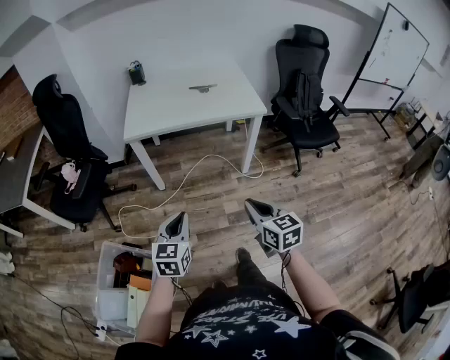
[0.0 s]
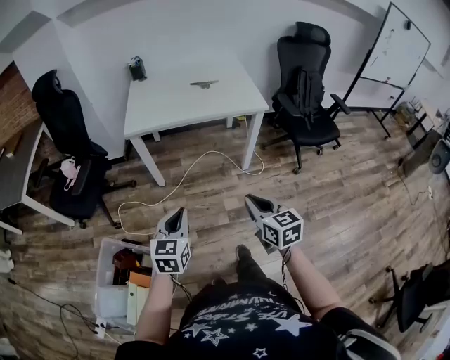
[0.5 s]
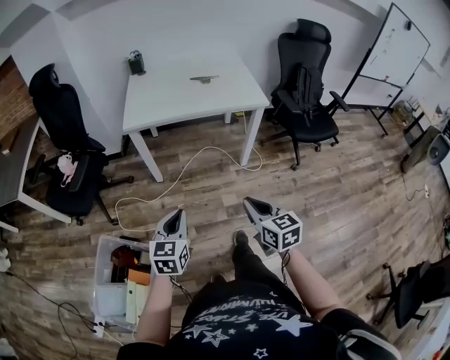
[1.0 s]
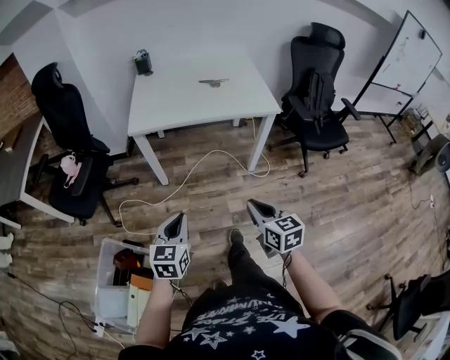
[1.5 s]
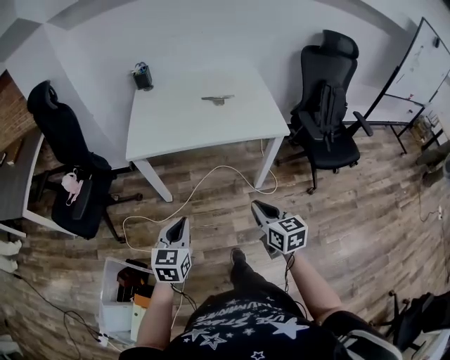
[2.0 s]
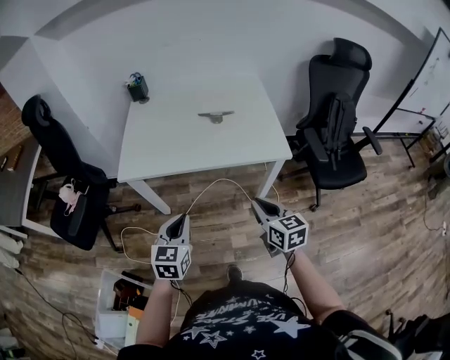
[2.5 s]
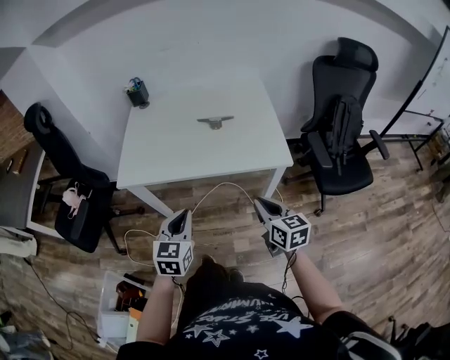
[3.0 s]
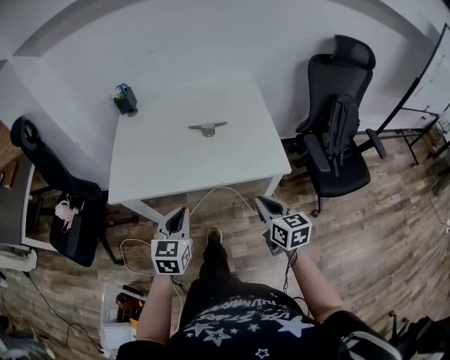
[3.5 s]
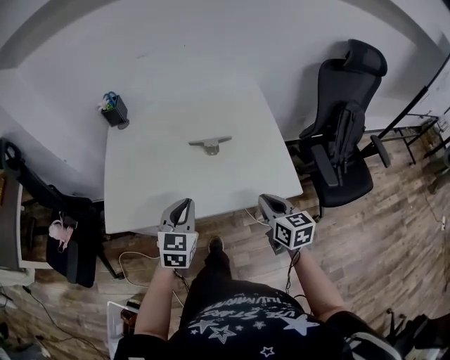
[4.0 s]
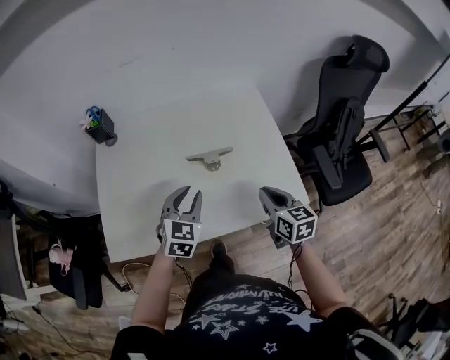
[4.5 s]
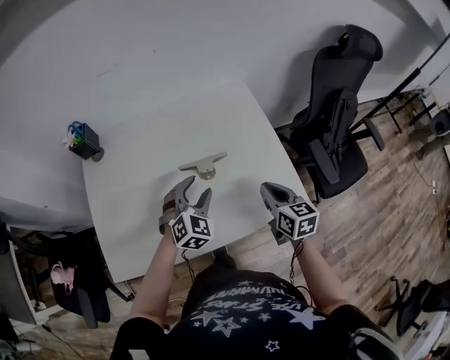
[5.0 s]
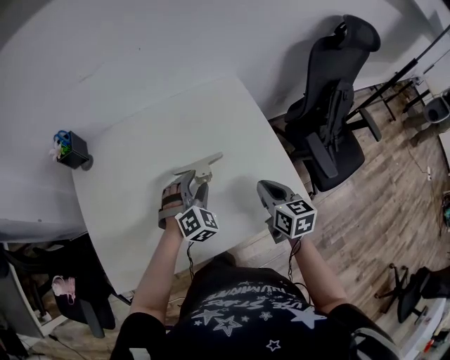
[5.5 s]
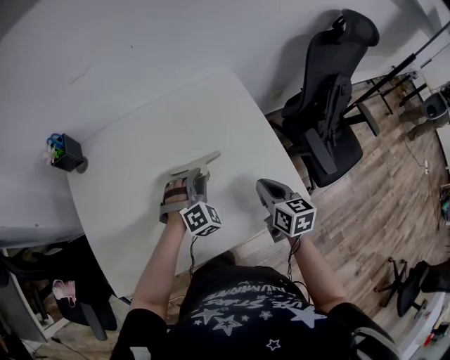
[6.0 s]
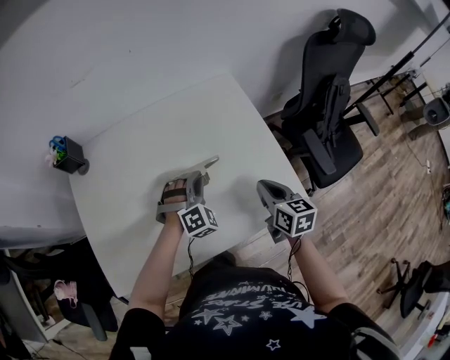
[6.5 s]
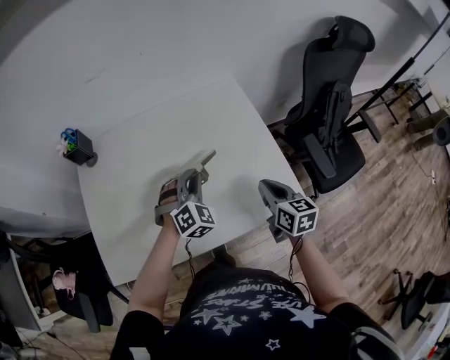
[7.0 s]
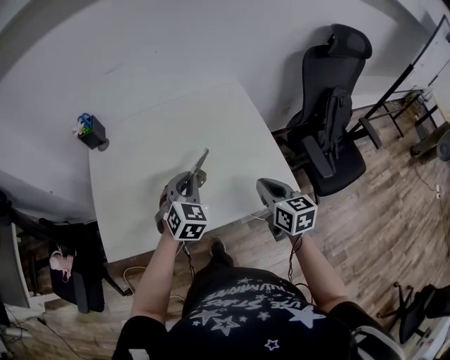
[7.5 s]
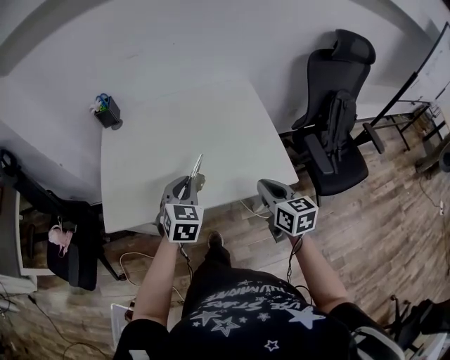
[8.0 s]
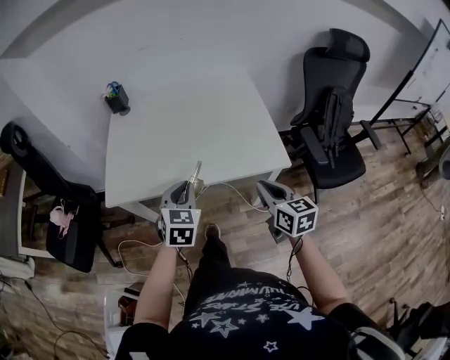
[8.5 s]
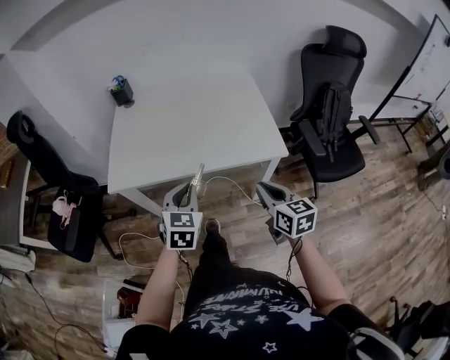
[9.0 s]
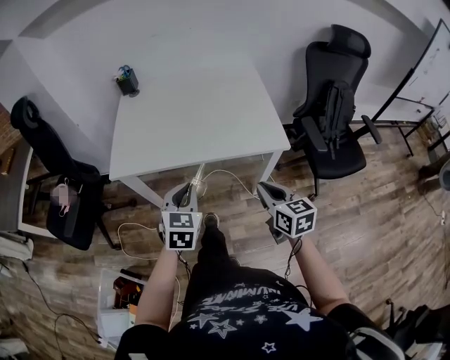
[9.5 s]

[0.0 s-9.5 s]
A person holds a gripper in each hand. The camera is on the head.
0.0 to 2.0 s: The grippers both shift forward by about 20 cm.
2.0 to 4.0 s: The two grippers travel together, forward, some 50 cm.
4.0 to 5.5 s: The grippers both shift forward by about 25 cm. The left gripper rotates around the line of its fingers by roughly 50 degrees, clockwise from behind, and opens up.
5.5 to 7.5 s: Both grippers move backward and upward, roughly 15 cm. The left gripper rotates roughly 30 degrees, and closes its fingers.
7.5 to 9.5 s: The two grippers go about 35 cm backward. The left gripper turns by about 20 degrees.

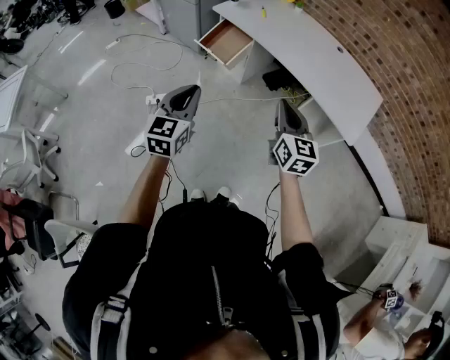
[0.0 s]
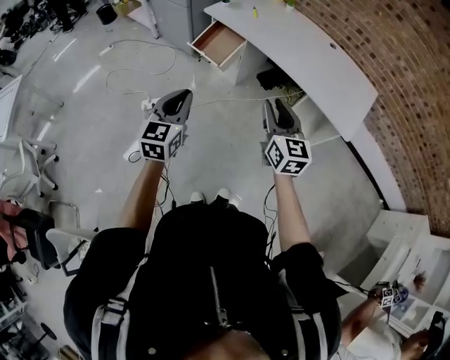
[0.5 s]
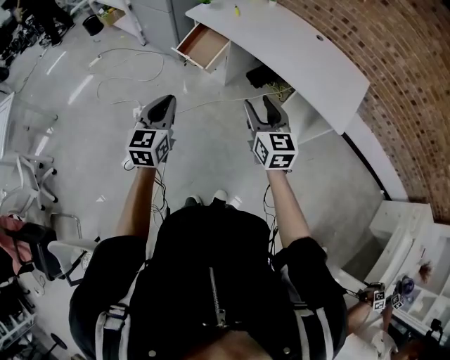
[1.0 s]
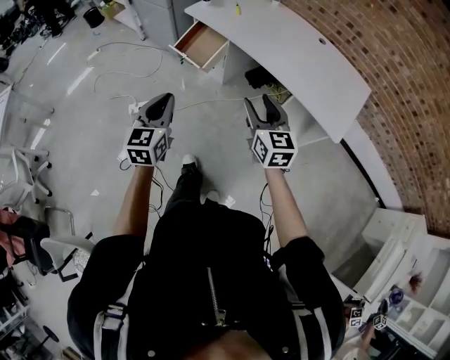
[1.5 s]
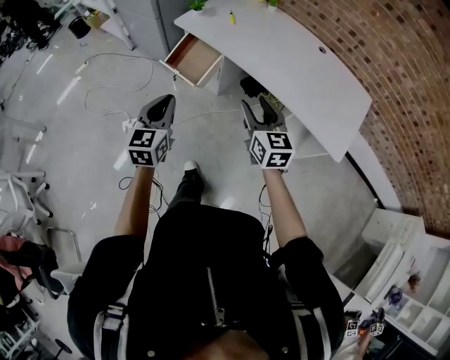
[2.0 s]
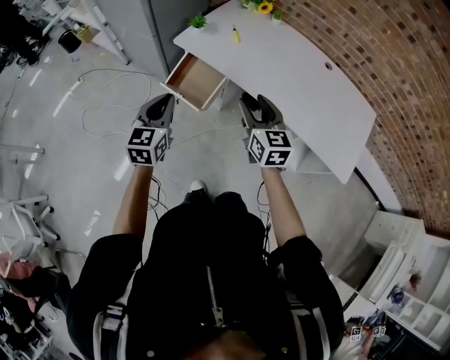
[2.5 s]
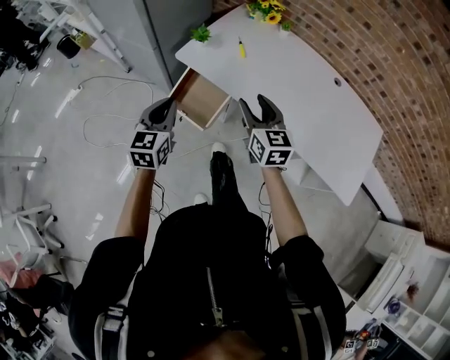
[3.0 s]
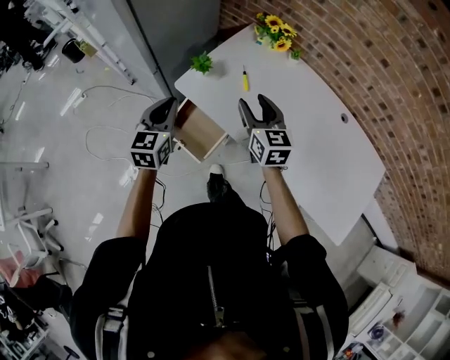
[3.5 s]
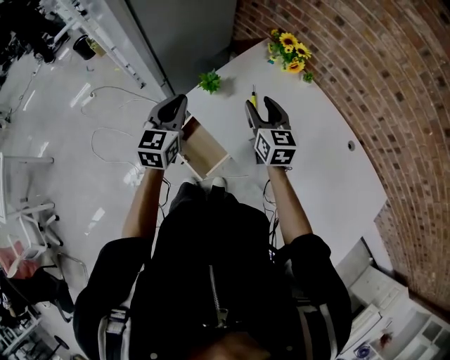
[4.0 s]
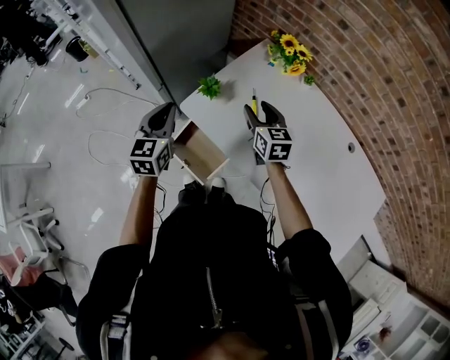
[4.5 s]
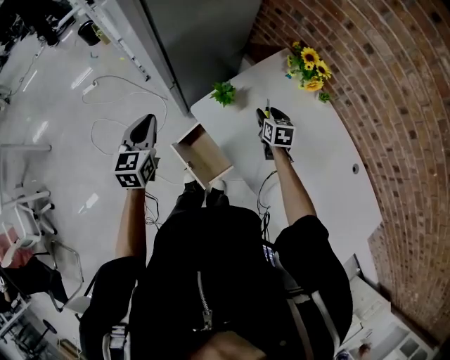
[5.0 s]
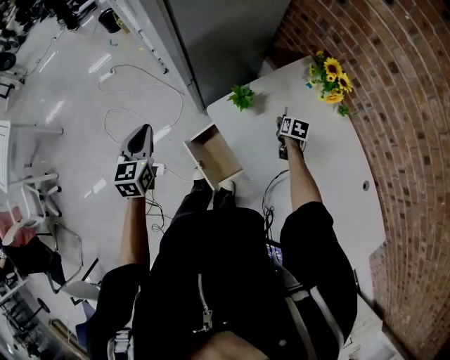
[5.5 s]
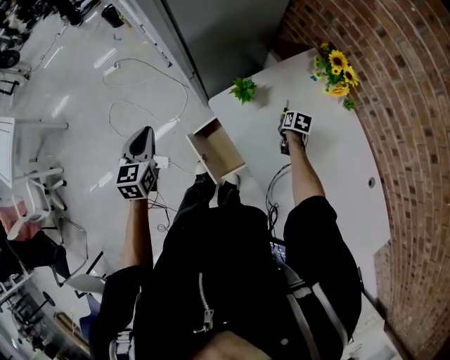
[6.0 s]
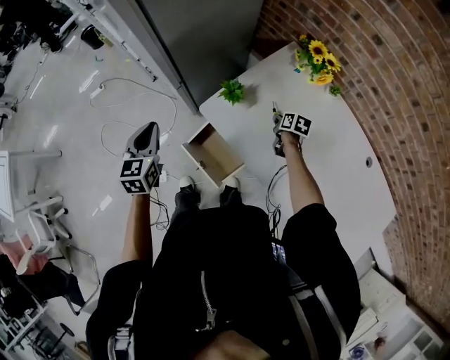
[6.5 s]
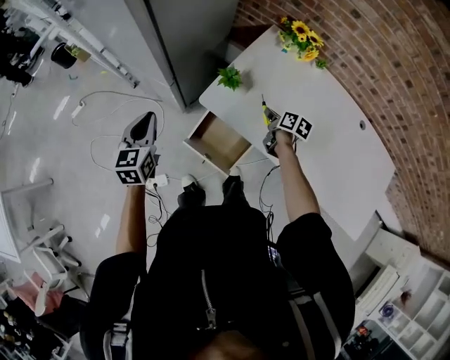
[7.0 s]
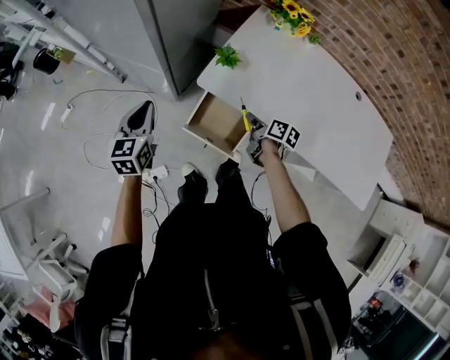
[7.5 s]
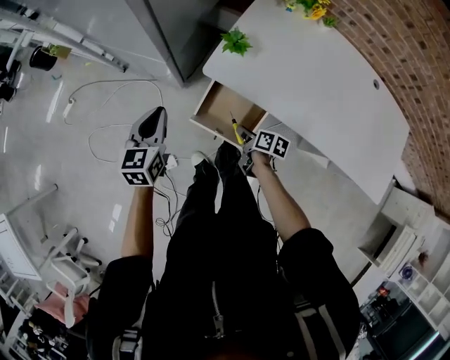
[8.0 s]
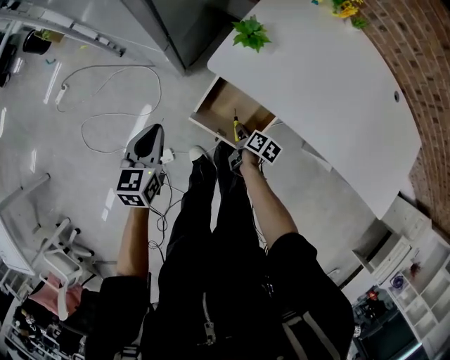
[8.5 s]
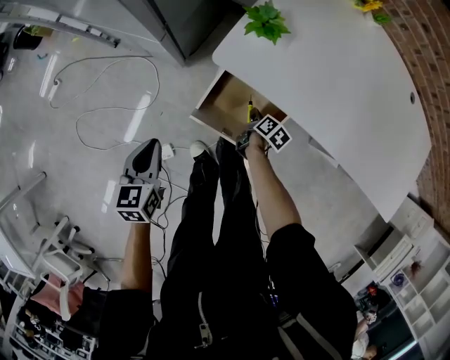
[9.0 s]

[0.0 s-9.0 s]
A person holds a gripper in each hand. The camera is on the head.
0.0 to 2.0 s: Both grippers travel together forward, some 20 cm. The right gripper opens its fingers.
2.0 to 4.5 s: The pair of grippers is taken forward, roughly 60 cm.
4.5 to 7.0 s: The left gripper is displaced to the left by about 15 cm, while the right gripper heads downward, covering some 15 cm, rotates around the line of its fingers by some 50 degrees, clockwise from behind, and closes its fingers.
7.0 to 9.0 s: The grippers both shift downward by roughly 25 cm. The left gripper turns by roughly 20 degrees. Meanwhile the right gripper swivels some 30 degrees.

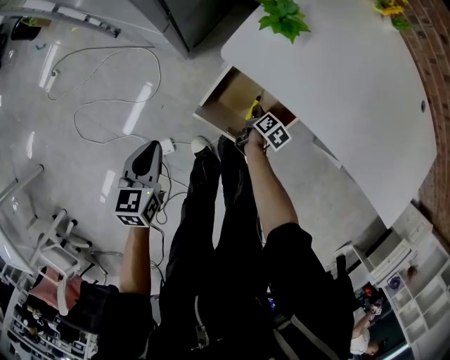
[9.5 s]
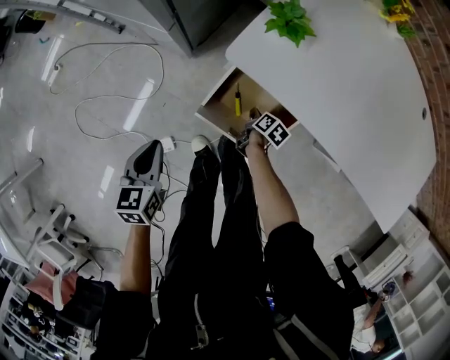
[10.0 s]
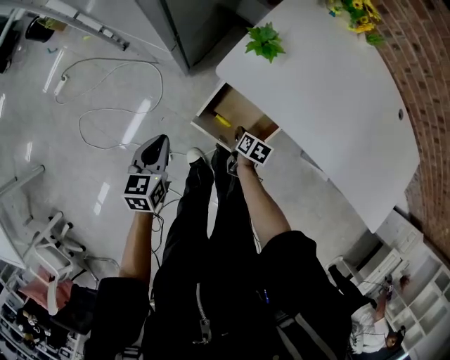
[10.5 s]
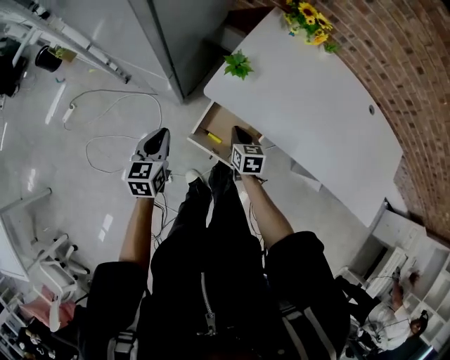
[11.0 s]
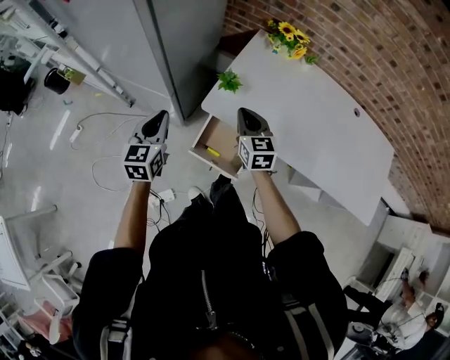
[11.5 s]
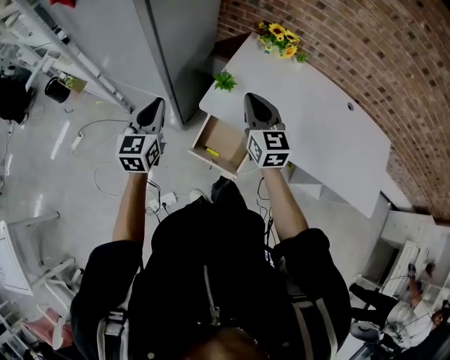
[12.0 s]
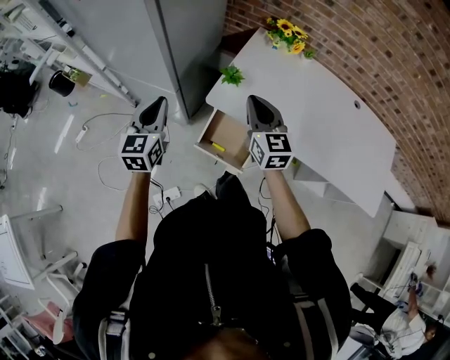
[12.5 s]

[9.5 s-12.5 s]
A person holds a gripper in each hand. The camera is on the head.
9.5 to 11.0 s: The right gripper heads upward, covering approximately 25 cm, and twists some 50 degrees counterclockwise, seen from behind. The left gripper is displaced upward by about 15 cm.
11.0 to 12.5 s: The right gripper travels upward by roughly 30 cm, and tips its fingers upward by about 30 degrees. The left gripper is displaced upward by about 20 cm, and swivels roughly 20 degrees.

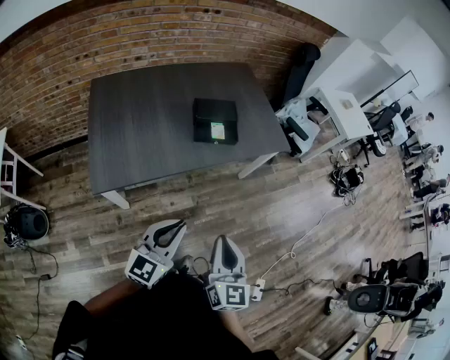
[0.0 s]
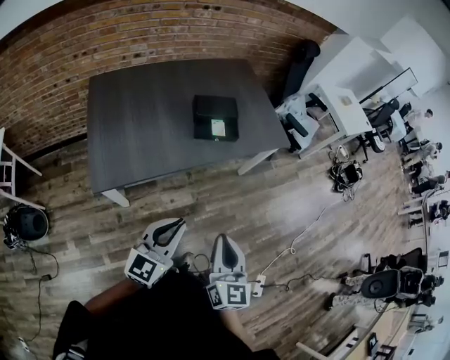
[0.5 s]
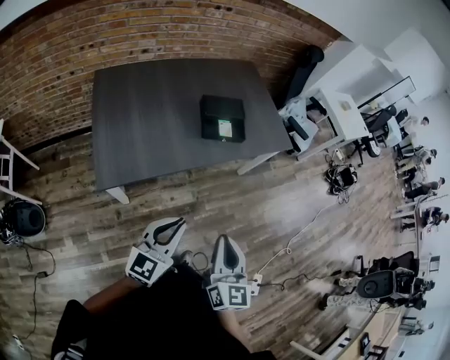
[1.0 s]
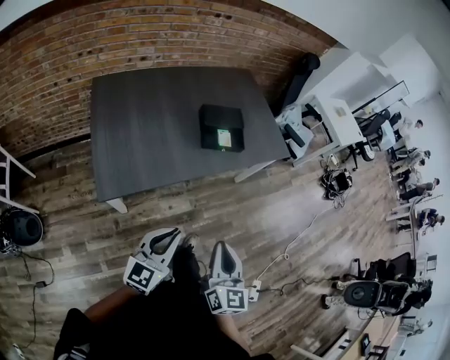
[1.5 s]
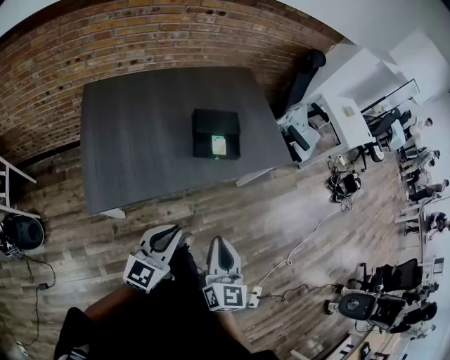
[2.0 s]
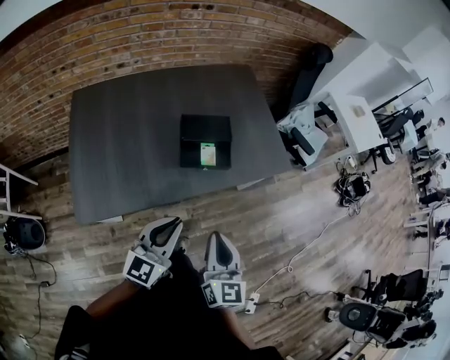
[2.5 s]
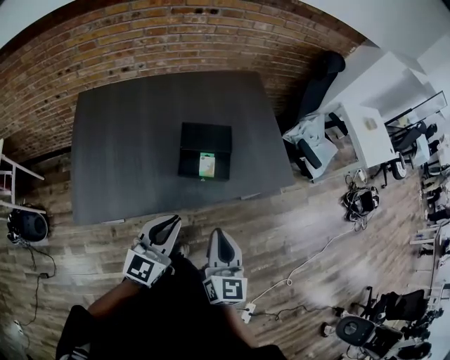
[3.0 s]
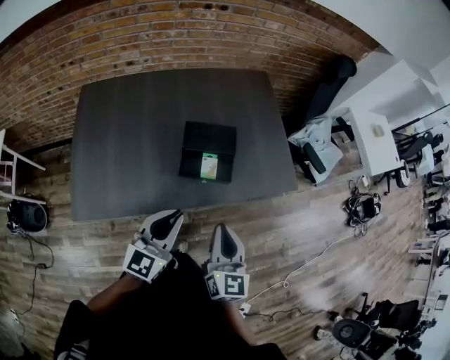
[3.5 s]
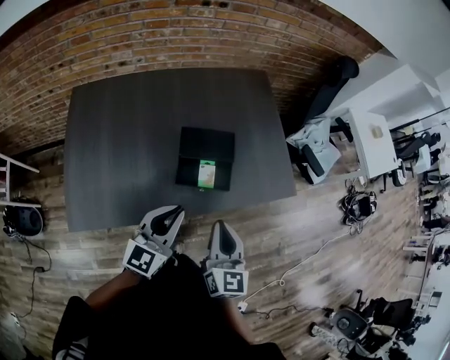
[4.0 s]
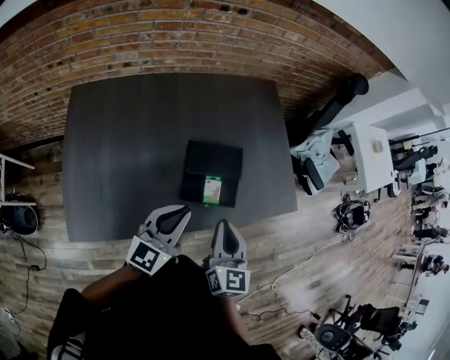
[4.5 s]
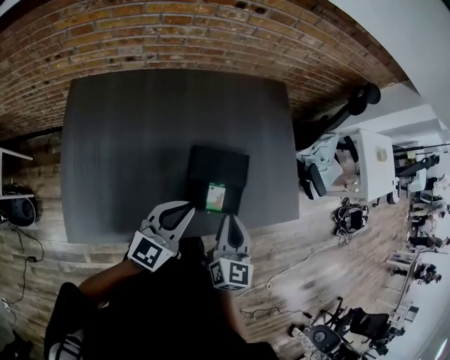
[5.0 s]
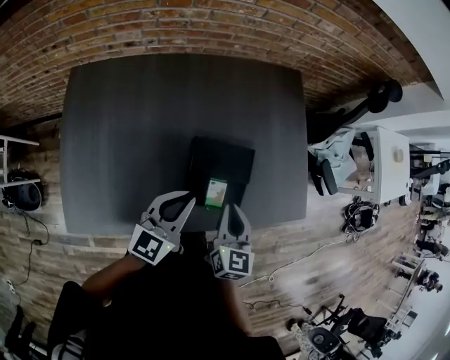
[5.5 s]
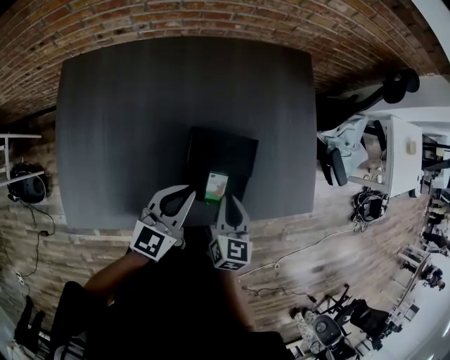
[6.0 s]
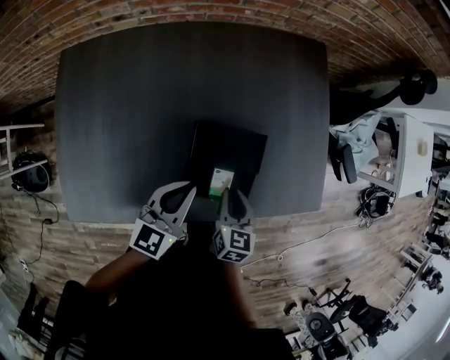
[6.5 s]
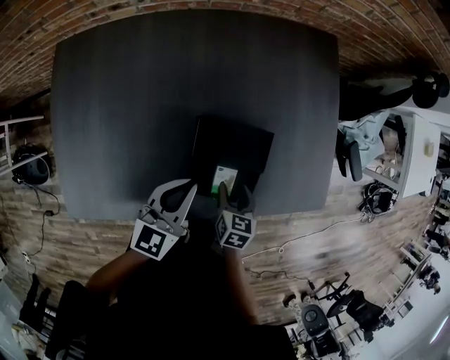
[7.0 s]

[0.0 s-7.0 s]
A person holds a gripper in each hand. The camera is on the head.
0.0 to 2.0 s: Both grippers travel together forward and to the left, some 10 cm.
2.0 to 3.5 s: Both grippers travel together forward, some 25 cm.
3.5 to 5.0 s: Both grippers move forward and to the left, roughly 20 cm.
5.0 to 7.0 s: The left gripper moves downward and forward, some 15 cm, while the right gripper goes some 25 cm downward, points its fingers some 30 degrees further downward, and opens its fingers.
